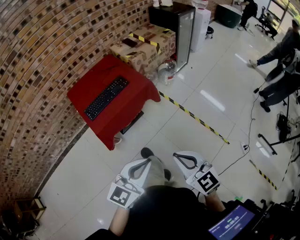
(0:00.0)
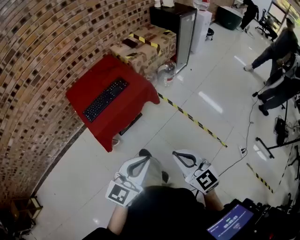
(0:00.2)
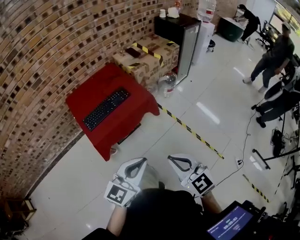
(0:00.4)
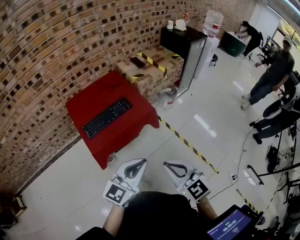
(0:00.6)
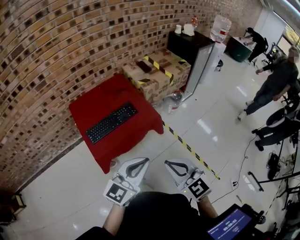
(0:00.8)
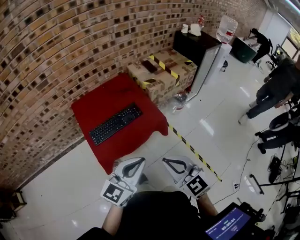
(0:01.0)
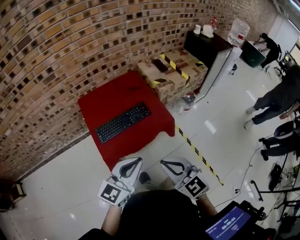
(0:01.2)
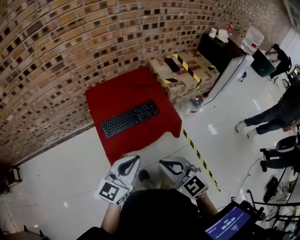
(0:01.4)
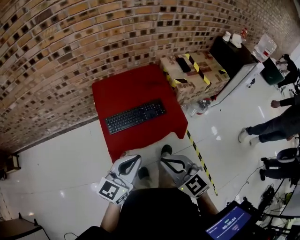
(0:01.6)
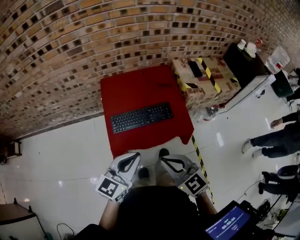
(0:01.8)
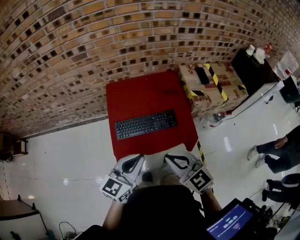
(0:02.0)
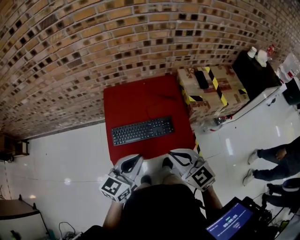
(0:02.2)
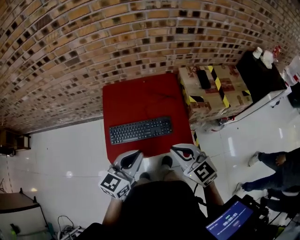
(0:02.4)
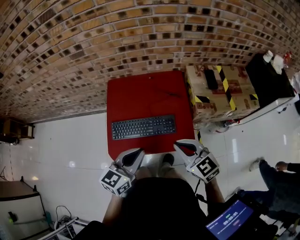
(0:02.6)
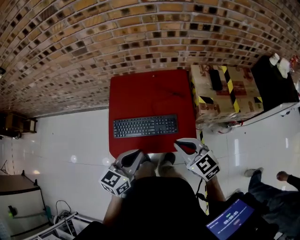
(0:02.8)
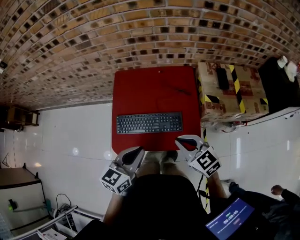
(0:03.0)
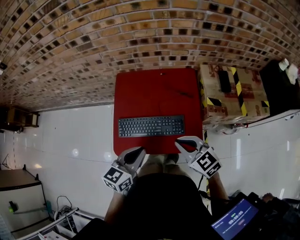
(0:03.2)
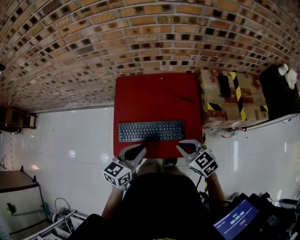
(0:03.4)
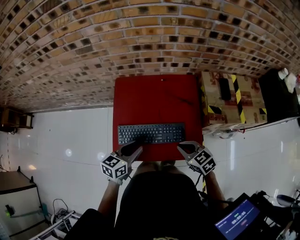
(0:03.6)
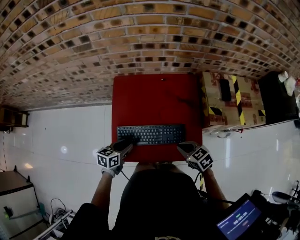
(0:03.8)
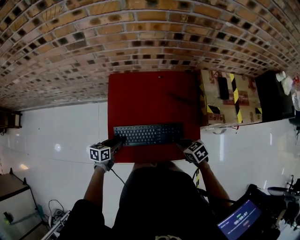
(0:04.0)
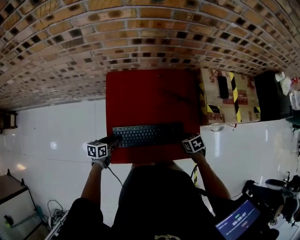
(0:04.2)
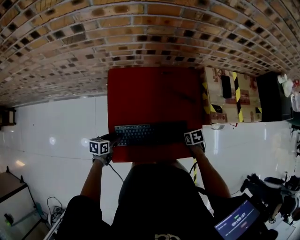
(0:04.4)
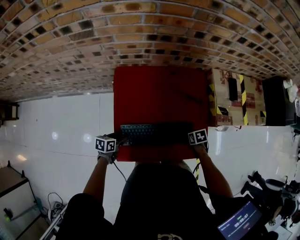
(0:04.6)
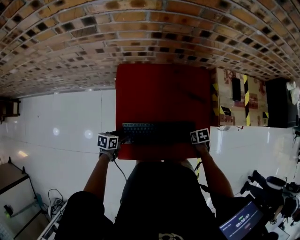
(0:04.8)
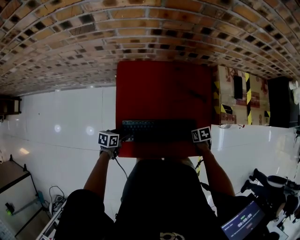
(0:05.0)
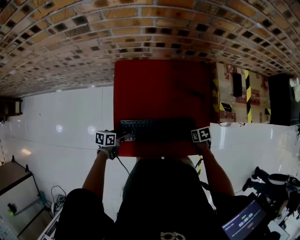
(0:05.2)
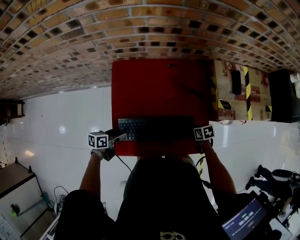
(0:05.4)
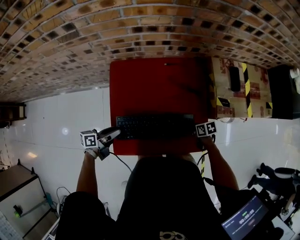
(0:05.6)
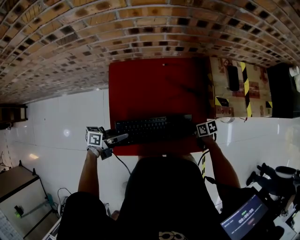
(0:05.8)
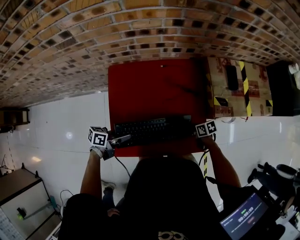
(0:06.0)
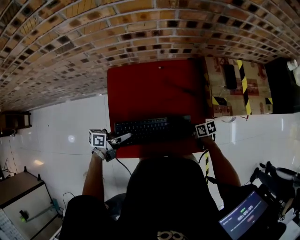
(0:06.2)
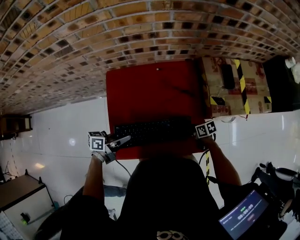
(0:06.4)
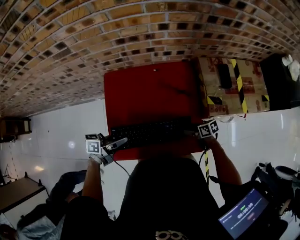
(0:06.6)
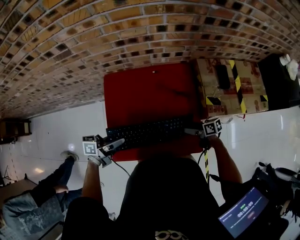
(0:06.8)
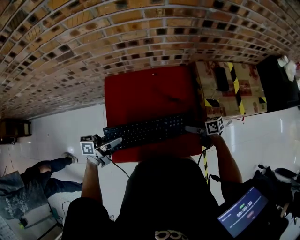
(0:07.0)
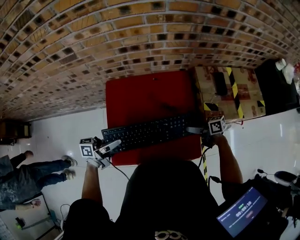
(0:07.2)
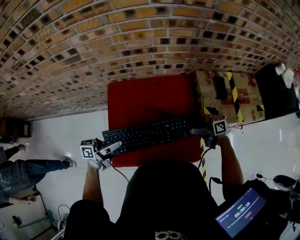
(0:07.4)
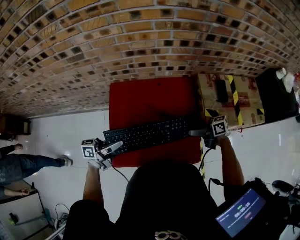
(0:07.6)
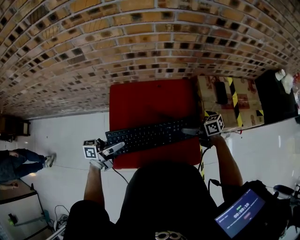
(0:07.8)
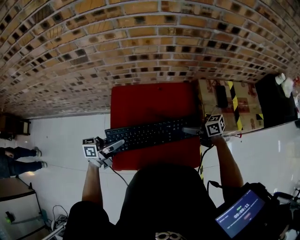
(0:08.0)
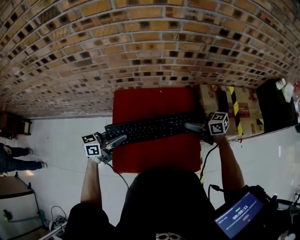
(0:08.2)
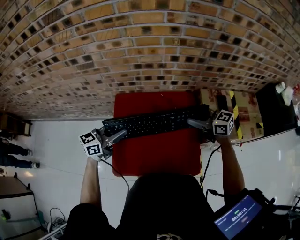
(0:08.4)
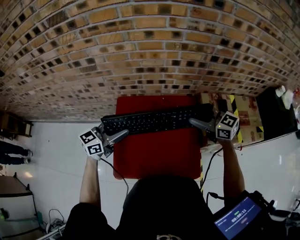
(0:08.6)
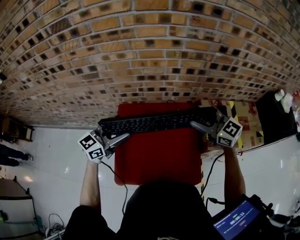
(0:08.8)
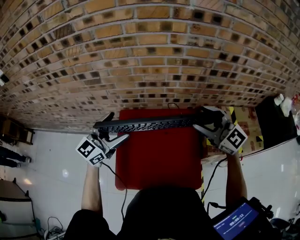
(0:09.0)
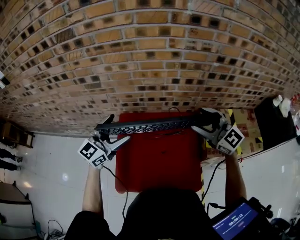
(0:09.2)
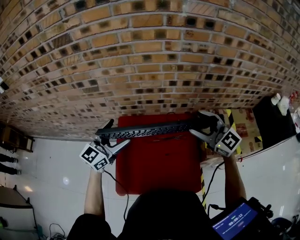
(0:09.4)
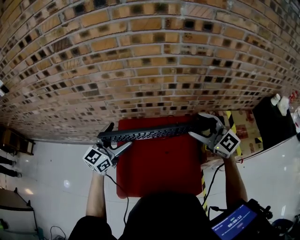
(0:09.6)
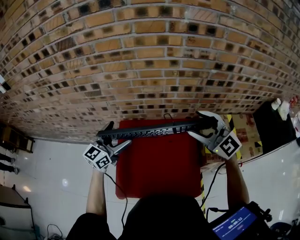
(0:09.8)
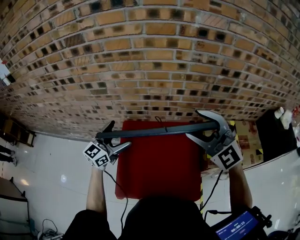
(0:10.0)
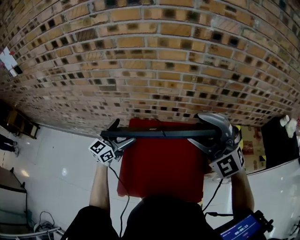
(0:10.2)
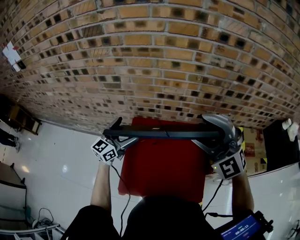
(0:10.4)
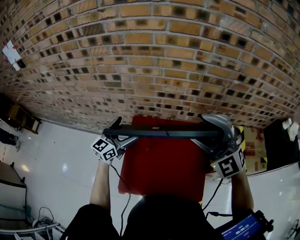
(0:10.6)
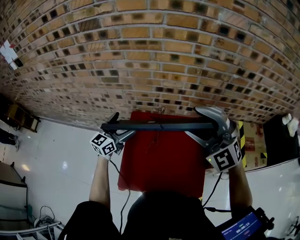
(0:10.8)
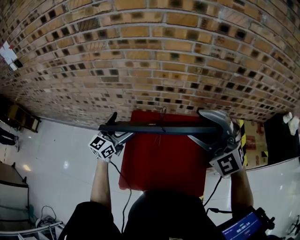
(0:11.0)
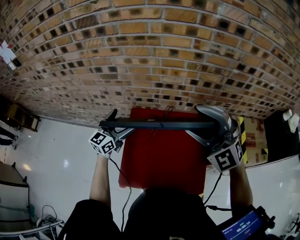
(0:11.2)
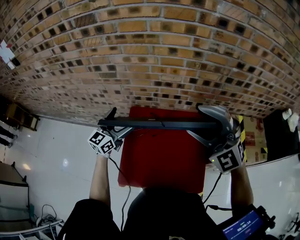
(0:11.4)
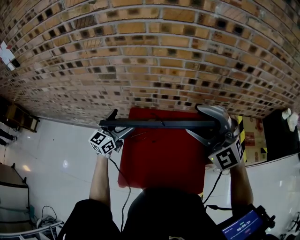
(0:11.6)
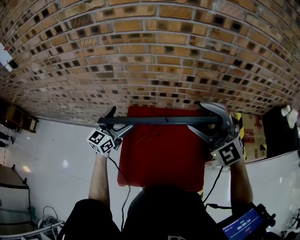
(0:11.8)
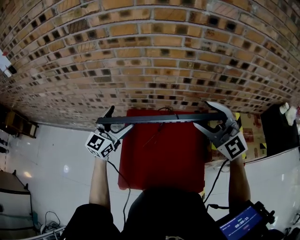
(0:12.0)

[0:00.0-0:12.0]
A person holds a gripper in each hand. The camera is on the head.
0:00.0 to 0:01.6: The left gripper moves approximately 30 cm, and rotates some 30 degrees. The right gripper ends up roughly 35 cm from where it was, and swivels some 30 degrees.
0:01.6 to 0:03.0: The right gripper moves forward and to the right, about 25 cm; the left gripper shifts about 20 cm forward and to the right, and changes its angle by some 30 degrees.
0:03.0 to 0:04.4: Both grippers move downward, about 30 cm. The left gripper rotates approximately 40 degrees, and opens its fingers, while the right gripper tips its fingers downward by some 50 degrees, and opens.
0:04.4 to 0:06.0: The right gripper turns by about 30 degrees. The left gripper goes roughly 10 cm upward, and changes its angle by about 30 degrees.
0:06.0 to 0:07.6: The two grippers go roughly 15 cm upward. The left gripper turns by about 30 degrees. The right gripper points its fingers about 40 degrees further upward, and opens.
0:07.6 to 0:09.0: The right gripper shifts about 30 cm upward, twists approximately 70 degrees counterclockwise, seen from behind, and closes its fingers. Meanwhile the left gripper is displaced upward by approximately 15 cm, rotates around the line of its fingers by some 60 degrees, clockwise from behind, and opens up.
0:09.0 to 0:10.4: The right gripper shifts some 10 cm to the left and upward, and rotates around the line of its fingers by about 40 degrees, counterclockwise from behind; the left gripper goes approximately 10 cm downward and to the left.
0:10.4 to 0:12.0: The right gripper ends up approximately 5 cm from where it was, and turns by roughly 30 degrees.

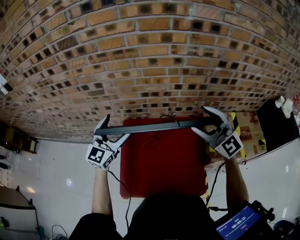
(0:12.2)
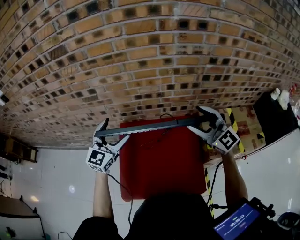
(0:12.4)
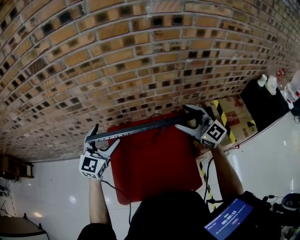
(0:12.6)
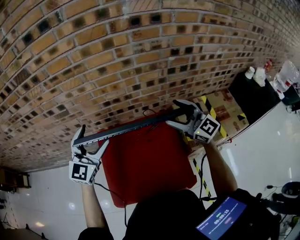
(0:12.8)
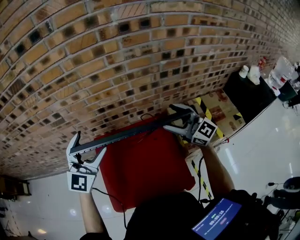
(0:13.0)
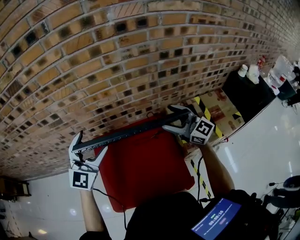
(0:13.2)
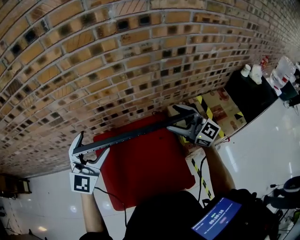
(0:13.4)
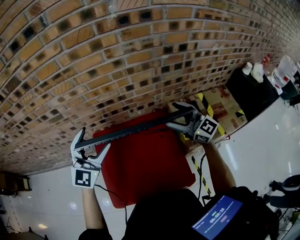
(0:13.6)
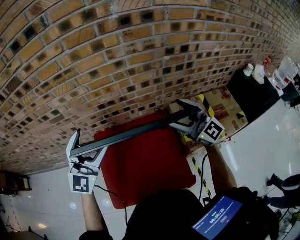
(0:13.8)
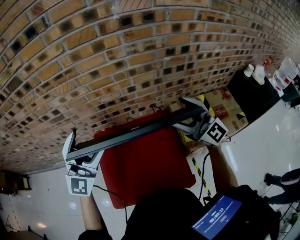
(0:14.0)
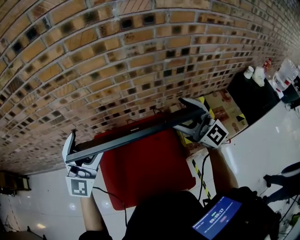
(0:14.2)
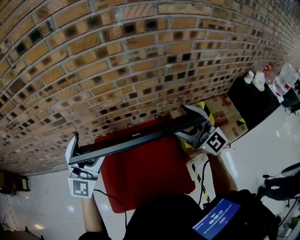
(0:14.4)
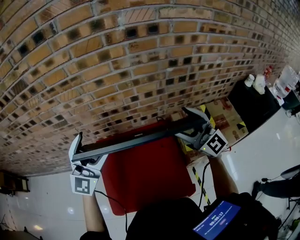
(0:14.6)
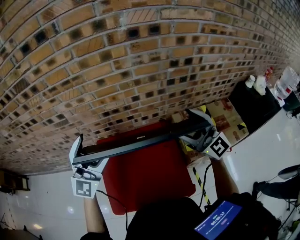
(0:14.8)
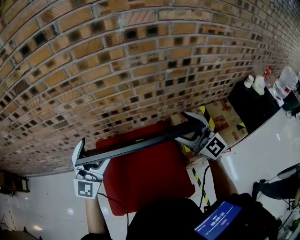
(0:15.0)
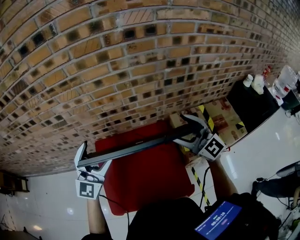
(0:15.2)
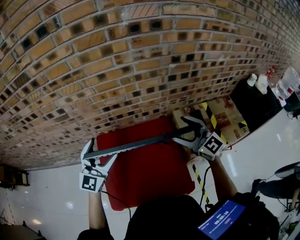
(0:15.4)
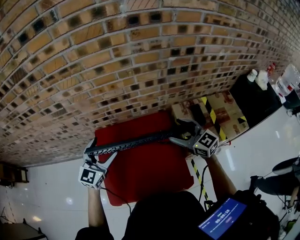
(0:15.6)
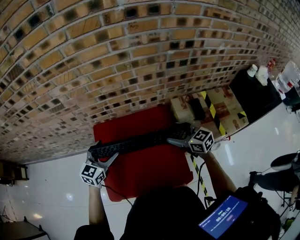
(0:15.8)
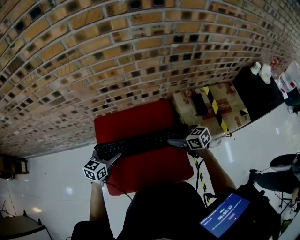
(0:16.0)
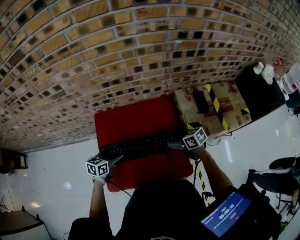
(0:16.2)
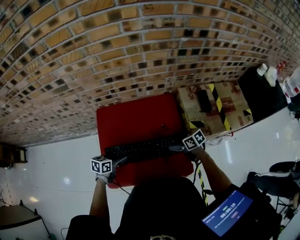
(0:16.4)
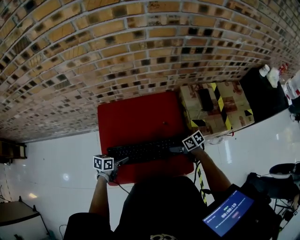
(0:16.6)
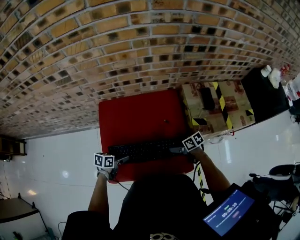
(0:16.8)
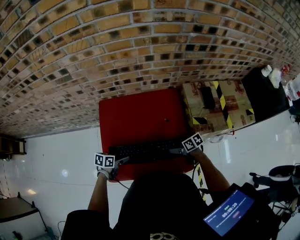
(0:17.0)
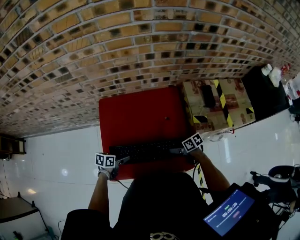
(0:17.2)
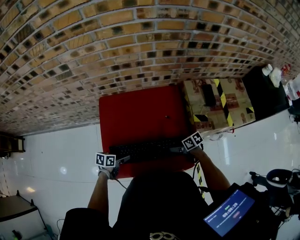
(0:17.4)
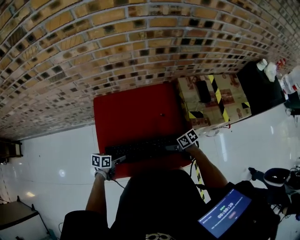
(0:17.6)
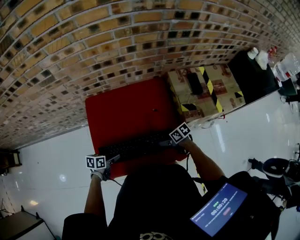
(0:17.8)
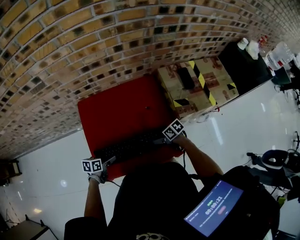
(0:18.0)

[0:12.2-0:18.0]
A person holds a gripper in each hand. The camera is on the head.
0:12.2 to 0:13.6: The left gripper goes approximately 10 cm to the right. The right gripper shifts approximately 15 cm to the right and downward, and swivels some 20 degrees.
0:13.6 to 0:15.0: The right gripper moves upward, roughly 10 cm.
0:15.0 to 0:16.6: The two grippers go some 40 cm downward. The left gripper angles its fingers downward, by some 50 degrees; the right gripper tilts its fingers roughly 50 degrees downward.
0:16.6 to 0:18.0: The left gripper moves about 5 cm, while the right gripper moves roughly 5 cm.

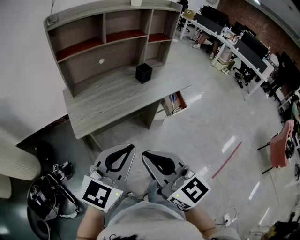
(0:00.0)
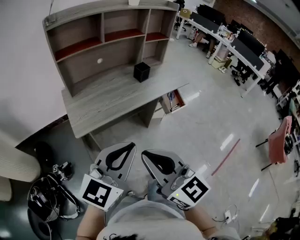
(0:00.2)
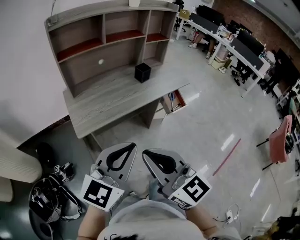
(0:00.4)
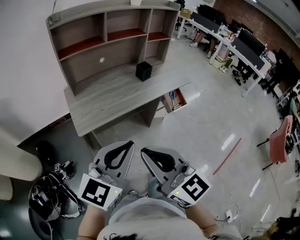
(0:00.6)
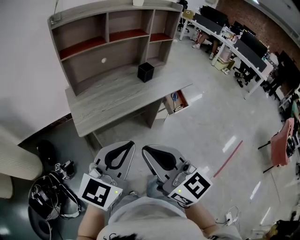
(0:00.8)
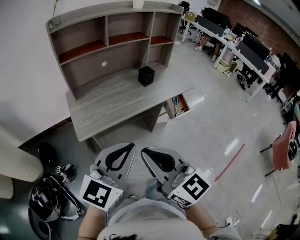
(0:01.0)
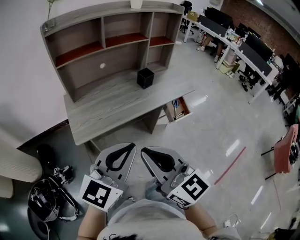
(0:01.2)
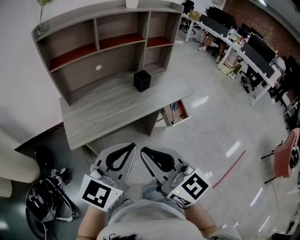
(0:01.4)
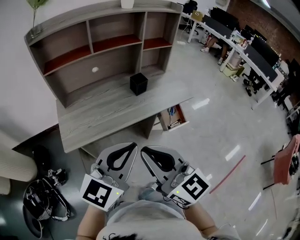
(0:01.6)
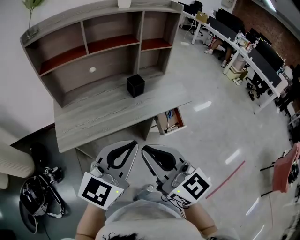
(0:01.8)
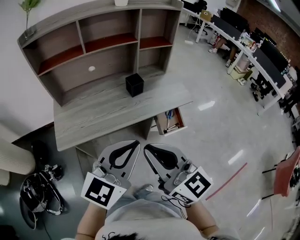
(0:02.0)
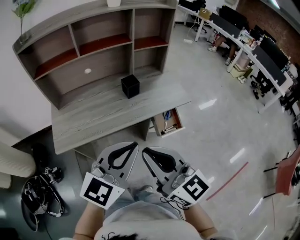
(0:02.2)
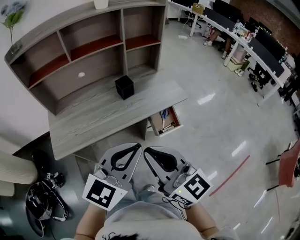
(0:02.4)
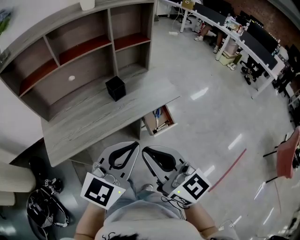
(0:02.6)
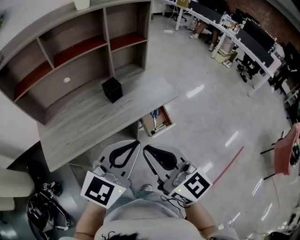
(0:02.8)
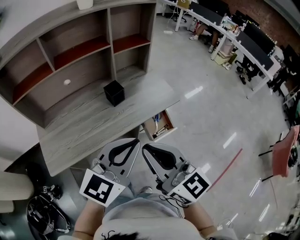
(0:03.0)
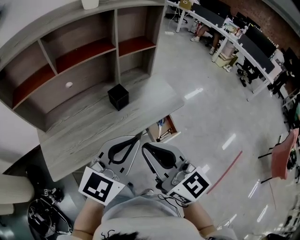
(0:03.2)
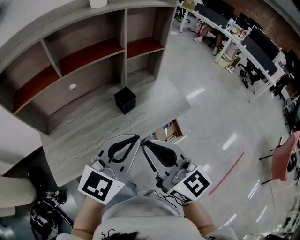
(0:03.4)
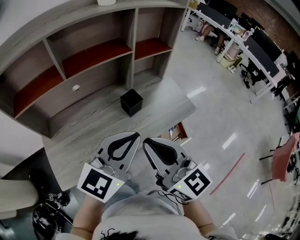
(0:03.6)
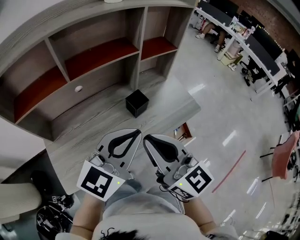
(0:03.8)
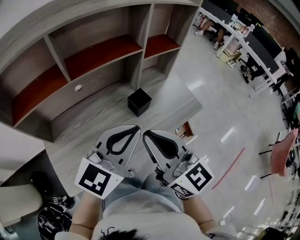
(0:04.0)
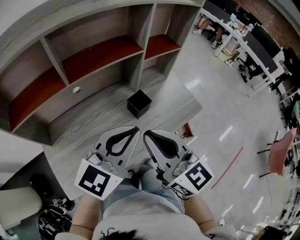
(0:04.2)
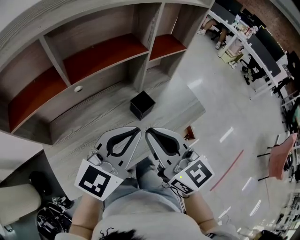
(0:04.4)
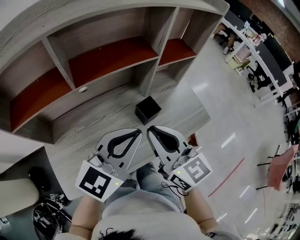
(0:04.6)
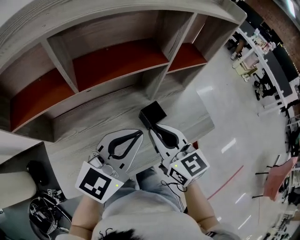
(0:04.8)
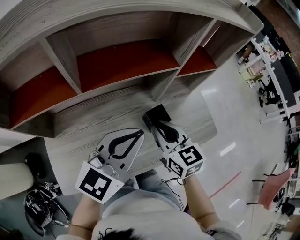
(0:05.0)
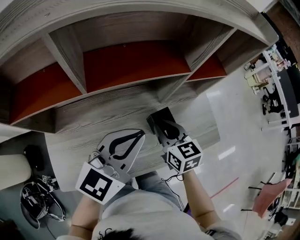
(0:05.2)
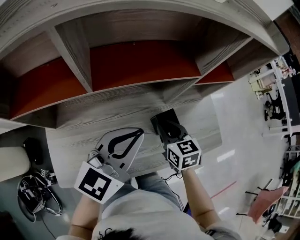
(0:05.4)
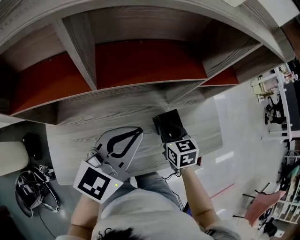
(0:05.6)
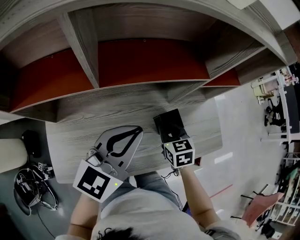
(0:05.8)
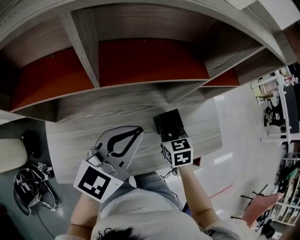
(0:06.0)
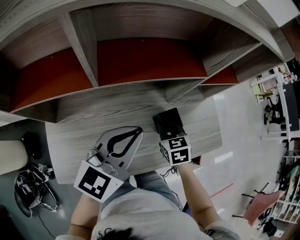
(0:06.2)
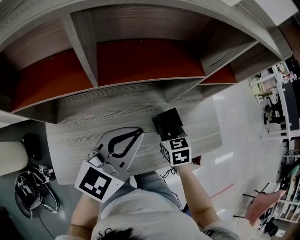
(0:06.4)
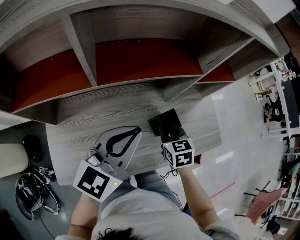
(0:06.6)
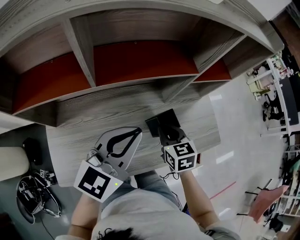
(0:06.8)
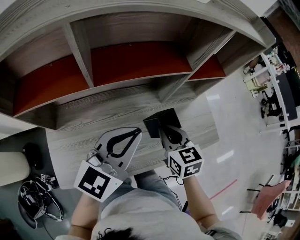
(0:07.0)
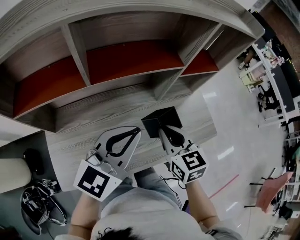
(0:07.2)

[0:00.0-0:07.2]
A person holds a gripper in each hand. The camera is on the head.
0:00.0 to 0:01.4: The grippers both shift forward and to the right by roughly 10 cm.
0:01.4 to 0:02.8: Both grippers travel together to the right and forward, some 25 cm.
0:02.8 to 0:04.4: Both grippers travel together forward and to the left, about 30 cm.
0:04.4 to 0:05.8: The left gripper shifts approximately 15 cm forward and to the left, and turns by approximately 20 degrees. Meanwhile the right gripper is displaced downward and forward by roughly 30 cm, and tilts its fingers roughly 40 degrees downward.
0:05.8 to 0:07.2: The left gripper shifts by some 5 cm, while the right gripper goes some 15 cm upward and backward.
